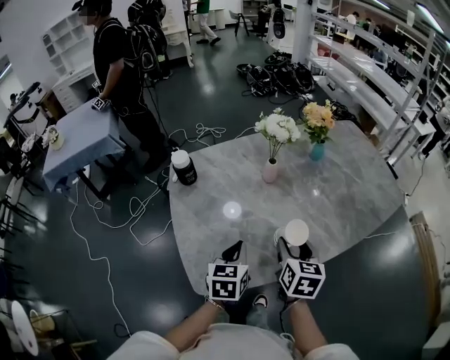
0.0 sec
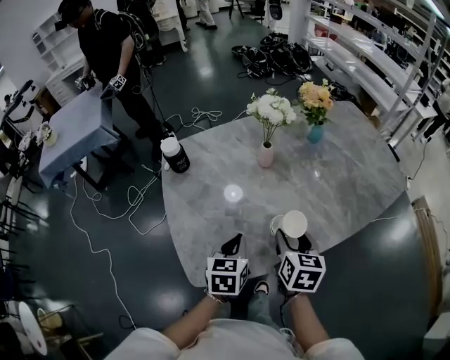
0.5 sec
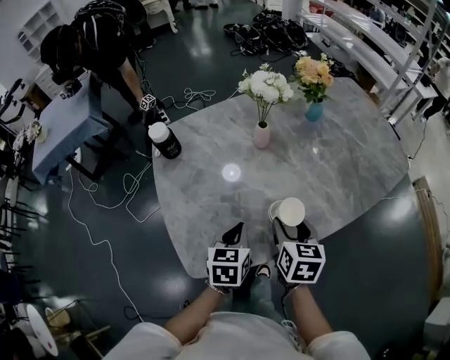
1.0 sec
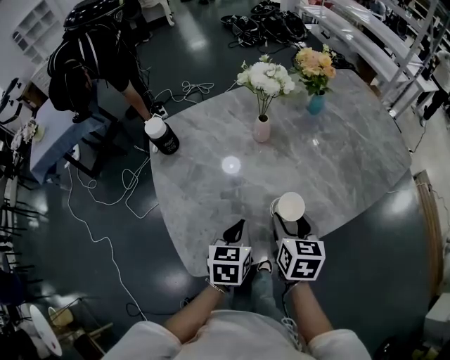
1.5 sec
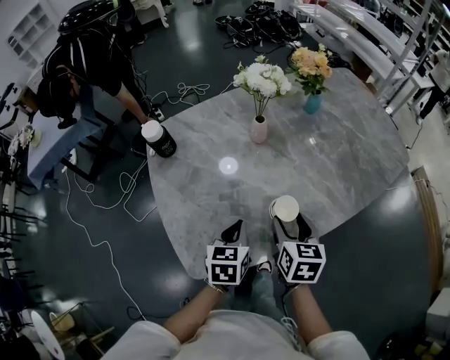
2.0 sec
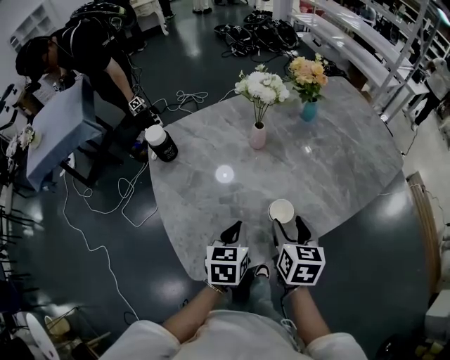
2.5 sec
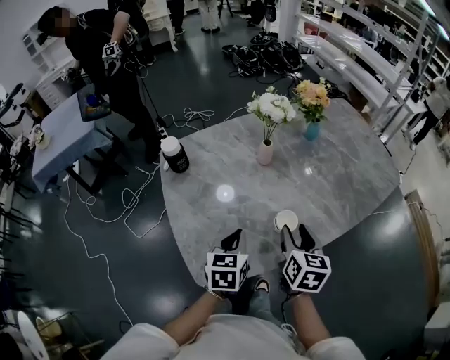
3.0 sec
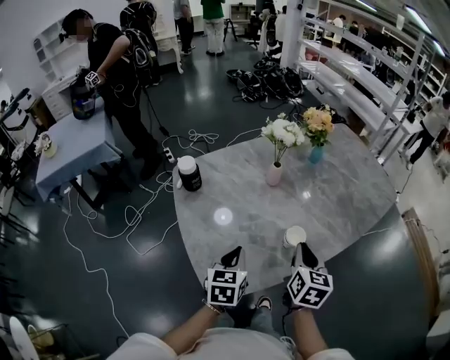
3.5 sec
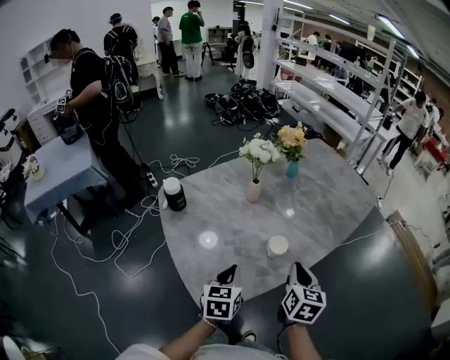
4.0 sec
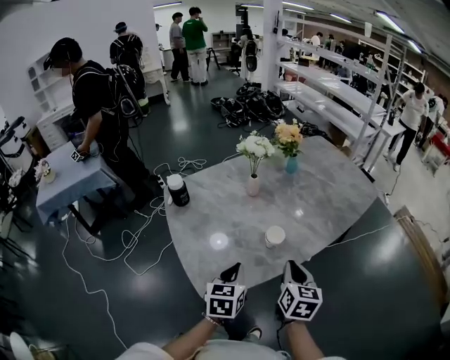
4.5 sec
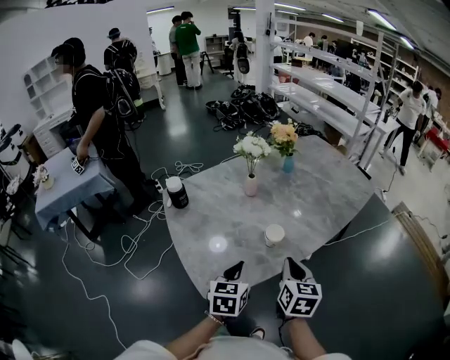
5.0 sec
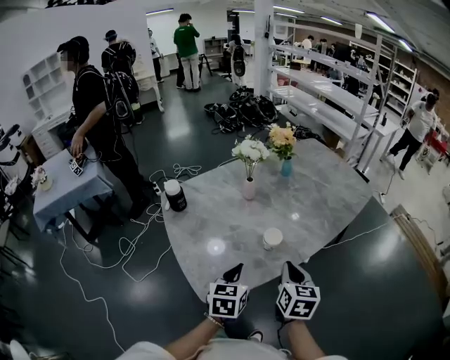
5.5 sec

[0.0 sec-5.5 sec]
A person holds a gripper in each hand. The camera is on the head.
0.0 sec to 2.0 sec: Both grippers move downward, some 5 cm.
2.0 sec to 3.5 sec: The right gripper travels upward by roughly 5 cm, and closes. Meanwhile the left gripper travels to the left and upward by about 10 cm.
3.5 sec to 5.5 sec: The right gripper goes about 10 cm backward, while the left gripper shifts some 10 cm to the right and backward.

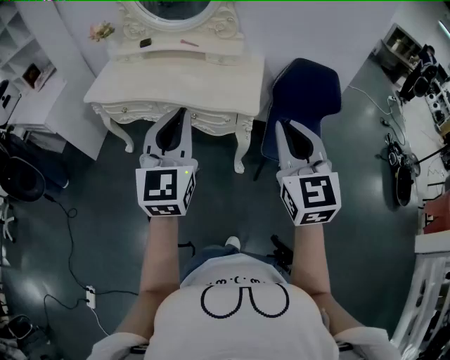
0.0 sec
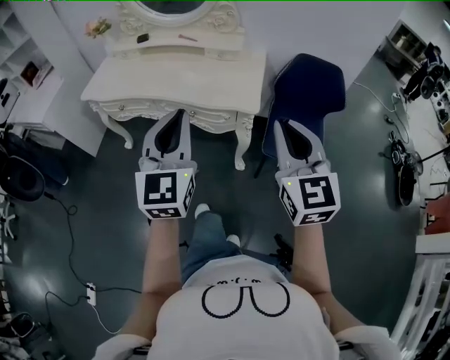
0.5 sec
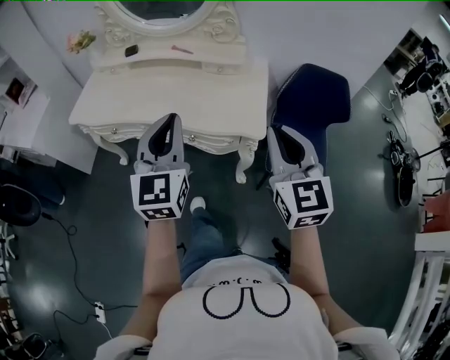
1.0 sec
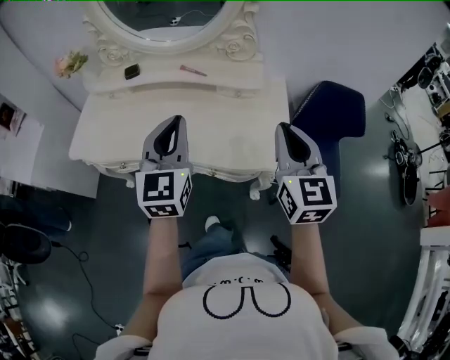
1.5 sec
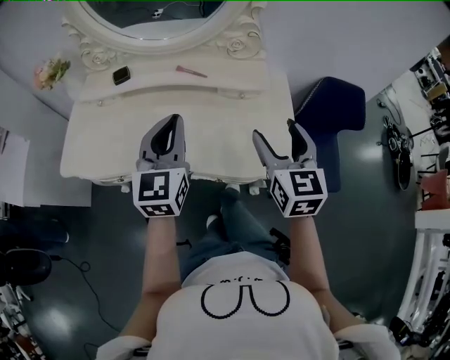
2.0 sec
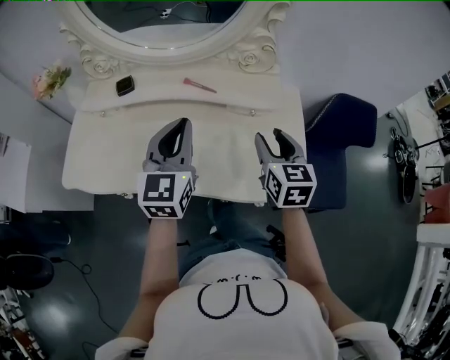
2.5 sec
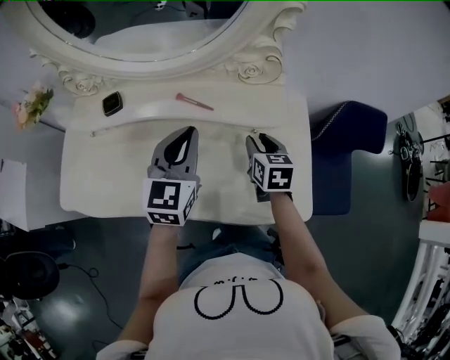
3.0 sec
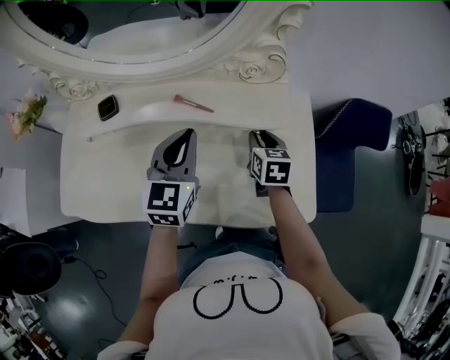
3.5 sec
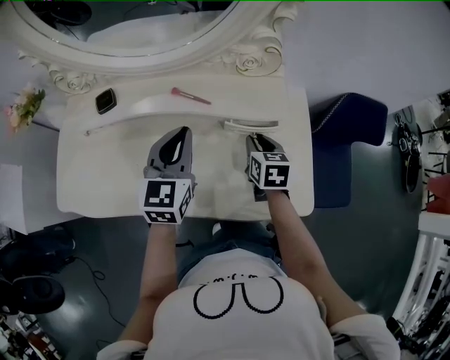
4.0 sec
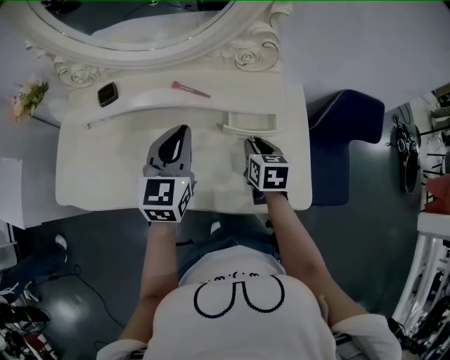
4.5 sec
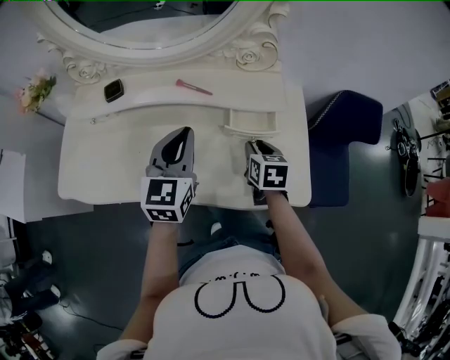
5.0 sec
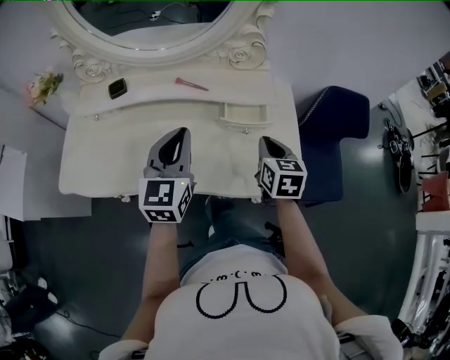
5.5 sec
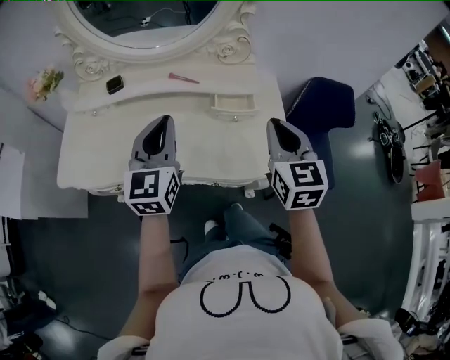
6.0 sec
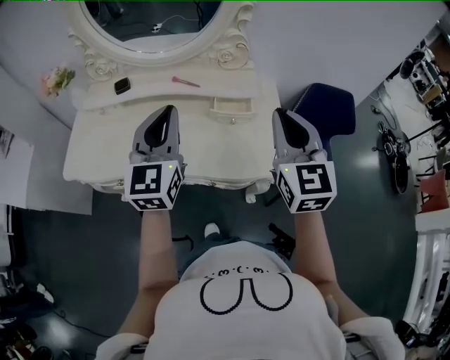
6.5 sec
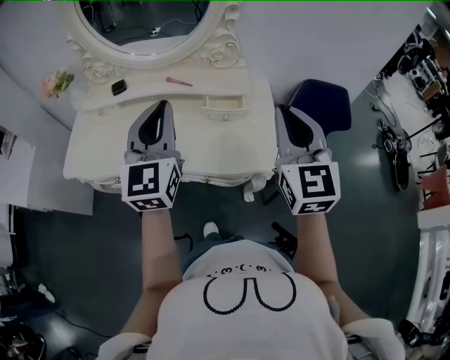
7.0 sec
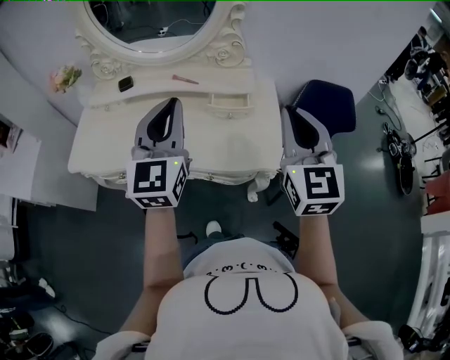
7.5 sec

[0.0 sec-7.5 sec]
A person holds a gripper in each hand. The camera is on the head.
0.0 sec to 2.0 sec: The two grippers travel together, forward, some 40 cm. The right gripper rotates about 20 degrees, and opens its fingers.
2.0 sec to 4.0 sec: The right gripper heads downward and forward, covering approximately 30 cm, rotates approximately 30 degrees, and closes, while the left gripper travels forward and downward by some 20 cm.
4.0 sec to 5.5 sec: The right gripper goes about 15 cm backward and upward, while the left gripper goes roughly 10 cm backward.
5.5 sec to 7.5 sec: The right gripper goes about 30 cm upward and backward, and tips its fingers upward by approximately 30 degrees; the left gripper heads upward and backward, covering roughly 20 cm.

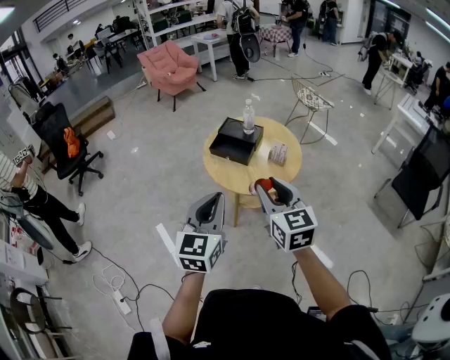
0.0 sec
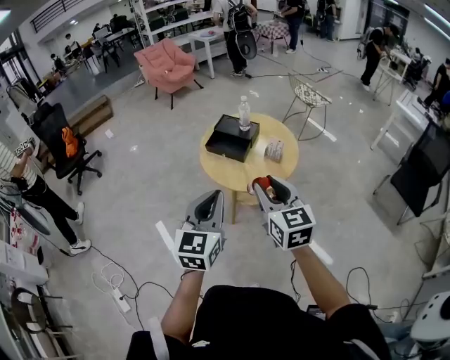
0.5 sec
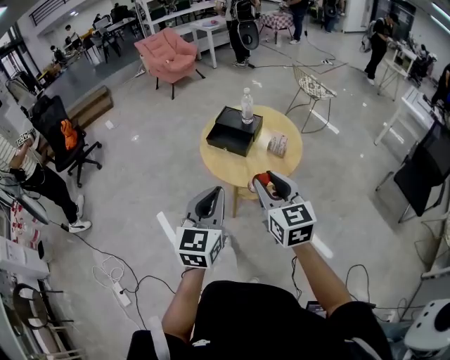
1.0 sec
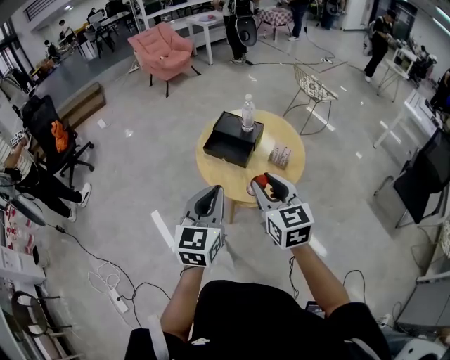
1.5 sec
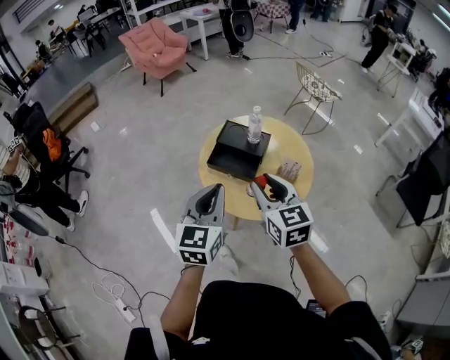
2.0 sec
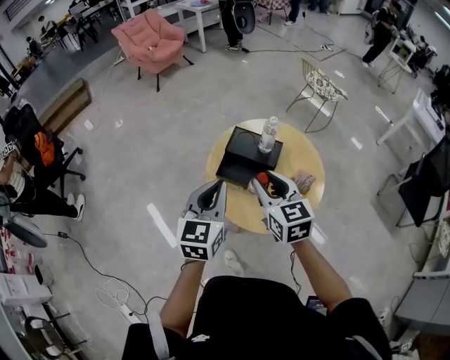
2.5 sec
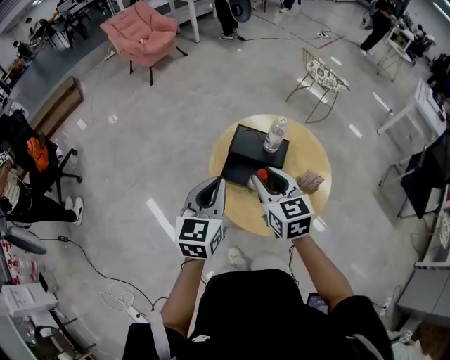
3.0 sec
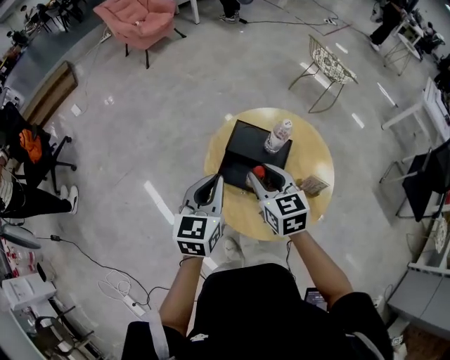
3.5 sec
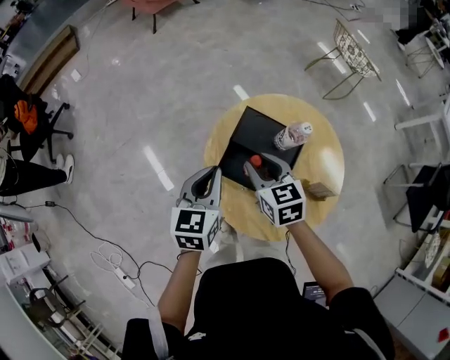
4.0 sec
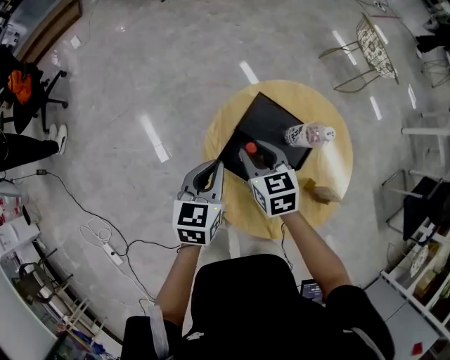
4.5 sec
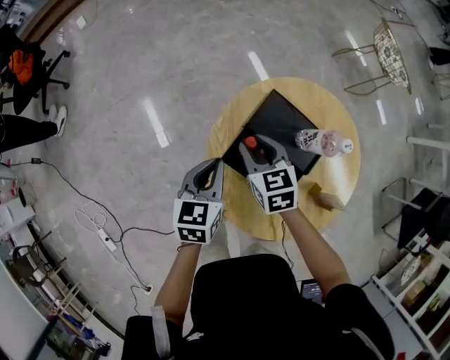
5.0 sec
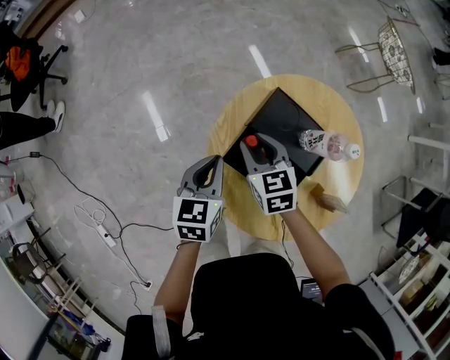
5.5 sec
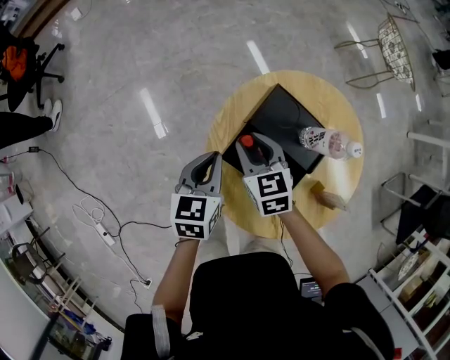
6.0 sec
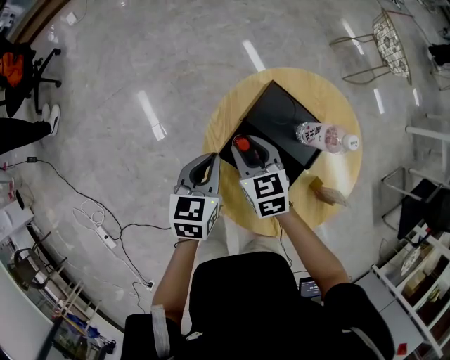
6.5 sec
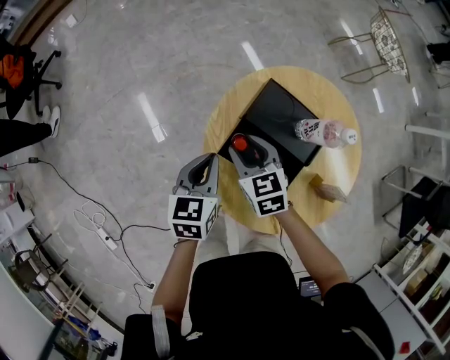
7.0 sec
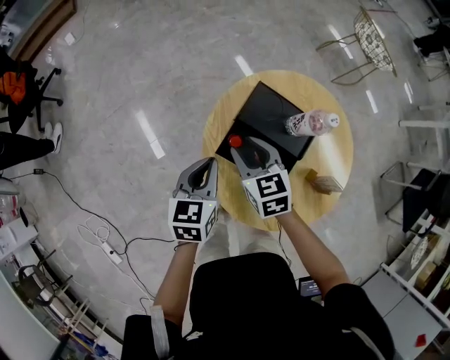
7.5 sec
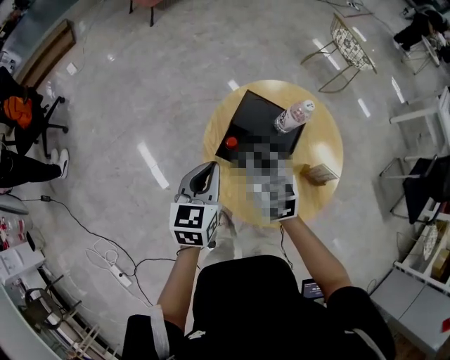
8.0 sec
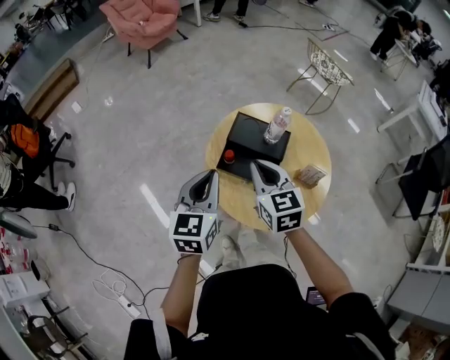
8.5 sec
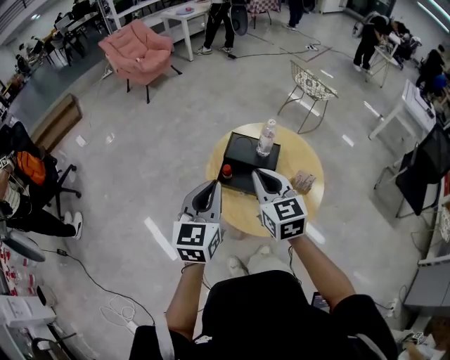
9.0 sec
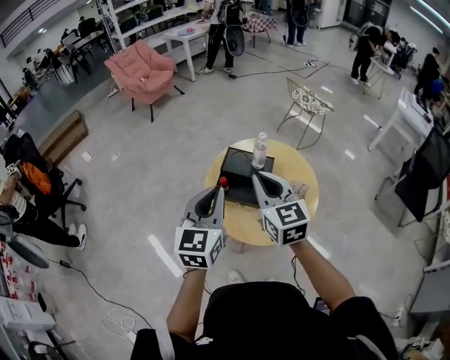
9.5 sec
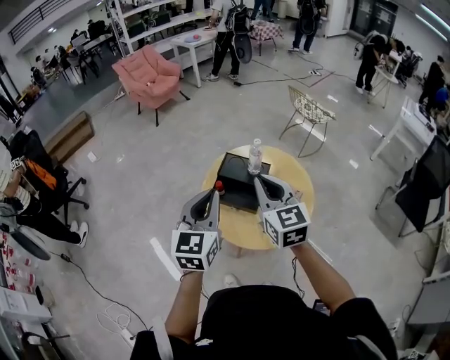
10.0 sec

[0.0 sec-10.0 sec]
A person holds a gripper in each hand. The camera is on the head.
0.0 sec to 2.0 sec: Both grippers move forward, roughly 25 cm.
2.0 sec to 4.0 sec: The grippers both shift forward and downward by about 30 cm. The right gripper rotates about 20 degrees.
4.0 sec to 6.0 sec: The right gripper goes about 15 cm downward and to the left. Meanwhile the left gripper heads downward, covering approximately 15 cm.
6.0 sec to 8.0 sec: Both grippers move upward and backward, approximately 15 cm. The right gripper closes its fingers.
8.0 sec to 10.0 sec: The right gripper shifts approximately 30 cm upward, backward and to the right, and swivels roughly 30 degrees. The left gripper shifts some 25 cm upward and backward, and turns by roughly 30 degrees.

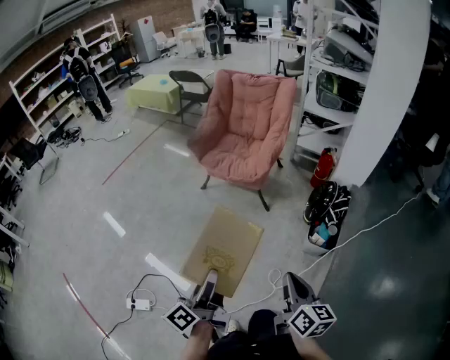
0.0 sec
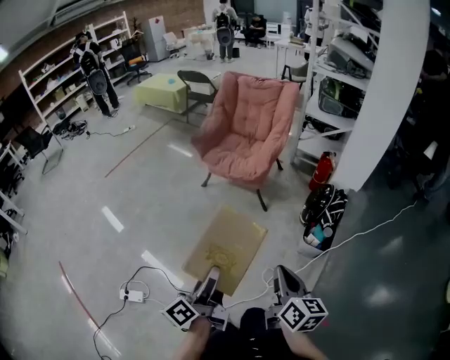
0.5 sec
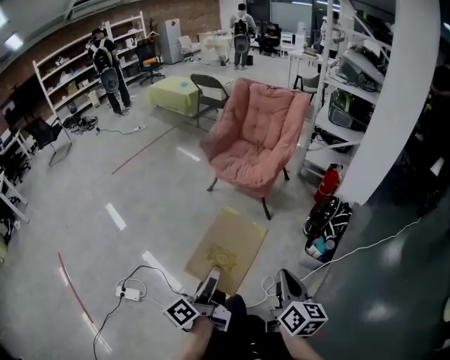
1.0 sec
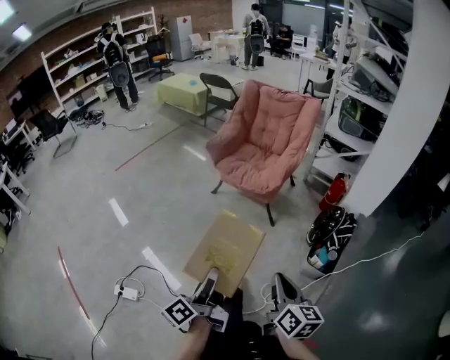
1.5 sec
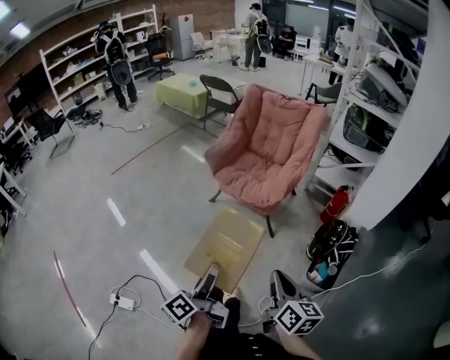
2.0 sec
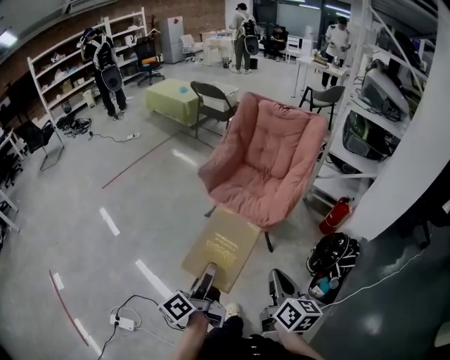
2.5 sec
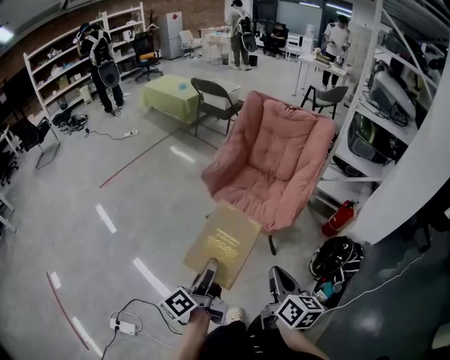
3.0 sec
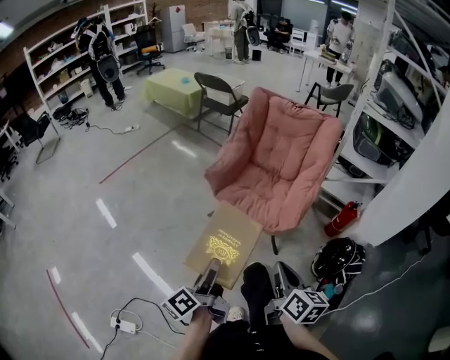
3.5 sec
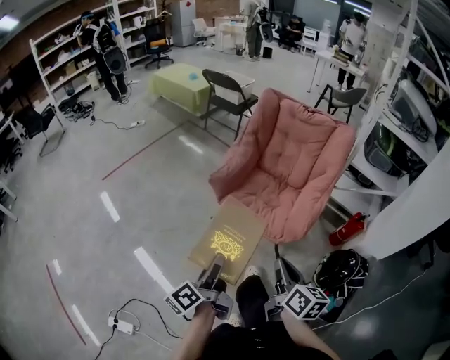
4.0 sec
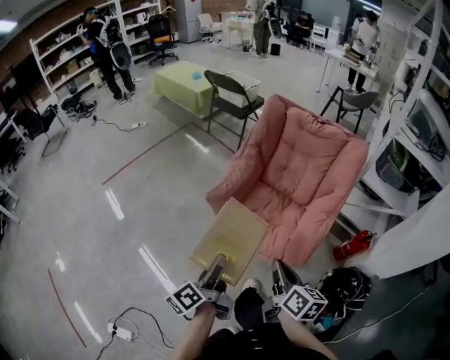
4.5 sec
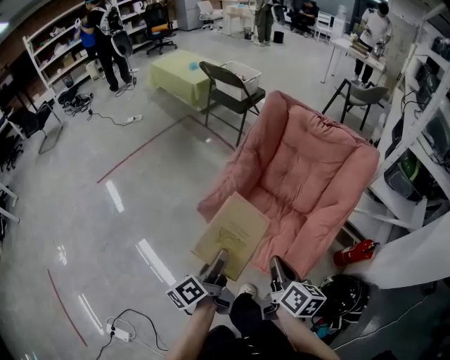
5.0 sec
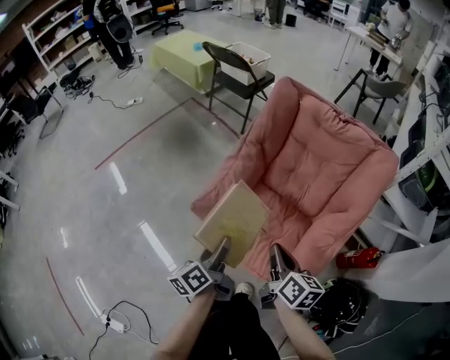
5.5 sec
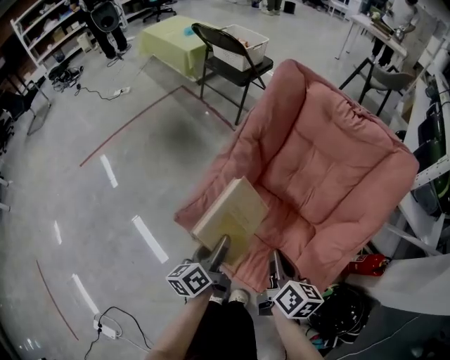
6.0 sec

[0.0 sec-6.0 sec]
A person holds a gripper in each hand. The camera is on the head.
0.0 sec to 2.0 sec: Both grippers travel together forward, some 15 cm.
2.0 sec to 4.0 sec: The grippers both shift forward by roughly 30 cm.
4.0 sec to 6.0 sec: The pair of grippers is taken forward, approximately 40 cm. Both grippers move downward, about 20 cm.
